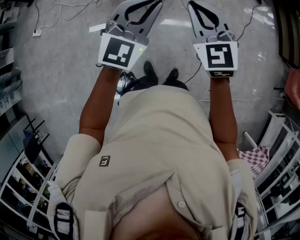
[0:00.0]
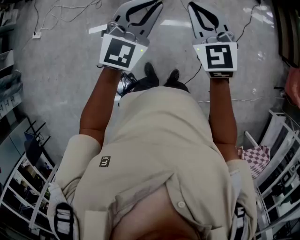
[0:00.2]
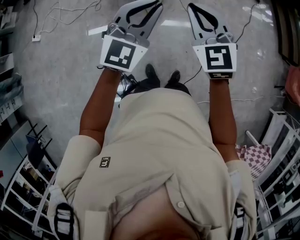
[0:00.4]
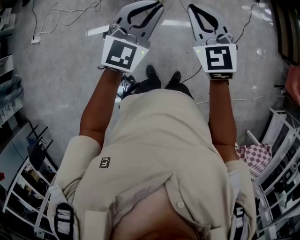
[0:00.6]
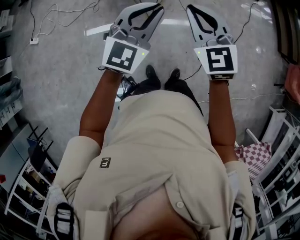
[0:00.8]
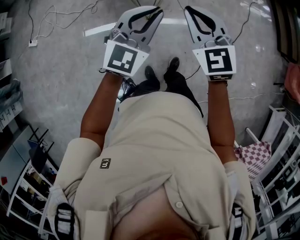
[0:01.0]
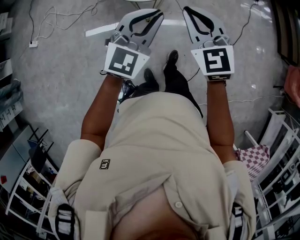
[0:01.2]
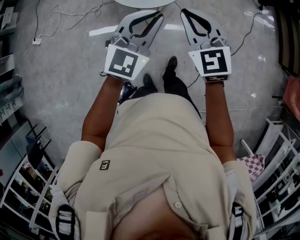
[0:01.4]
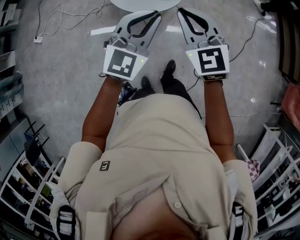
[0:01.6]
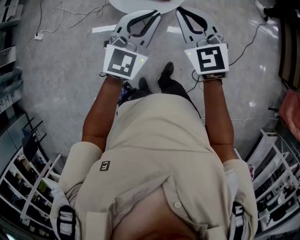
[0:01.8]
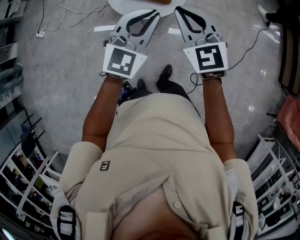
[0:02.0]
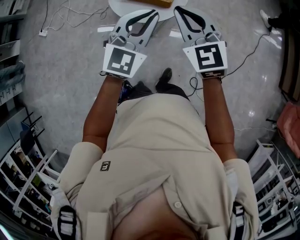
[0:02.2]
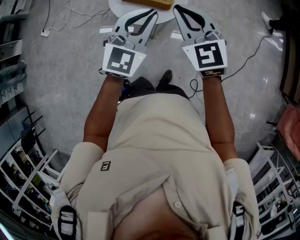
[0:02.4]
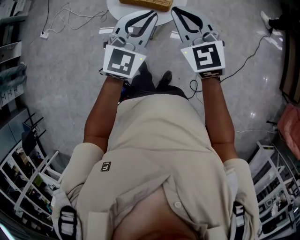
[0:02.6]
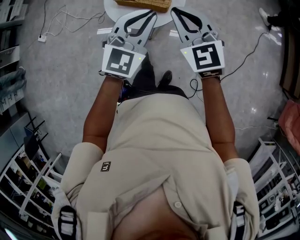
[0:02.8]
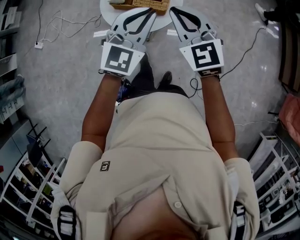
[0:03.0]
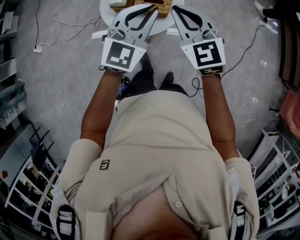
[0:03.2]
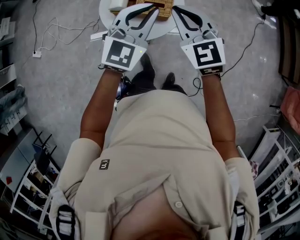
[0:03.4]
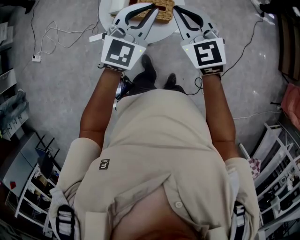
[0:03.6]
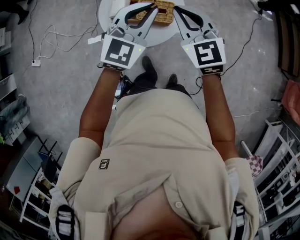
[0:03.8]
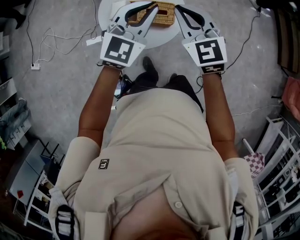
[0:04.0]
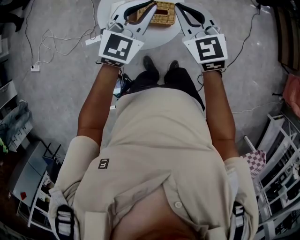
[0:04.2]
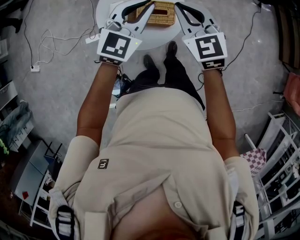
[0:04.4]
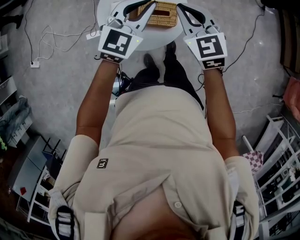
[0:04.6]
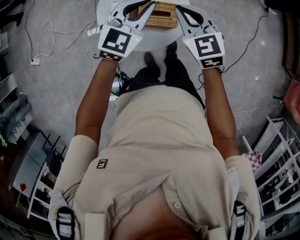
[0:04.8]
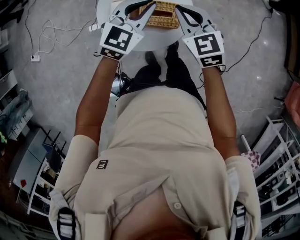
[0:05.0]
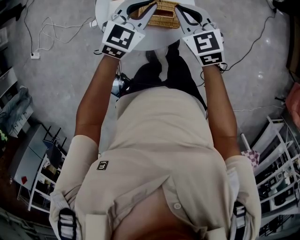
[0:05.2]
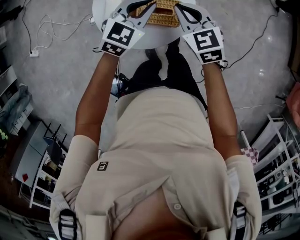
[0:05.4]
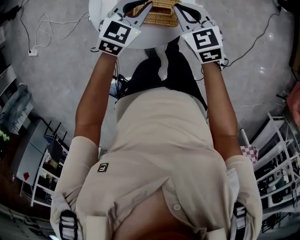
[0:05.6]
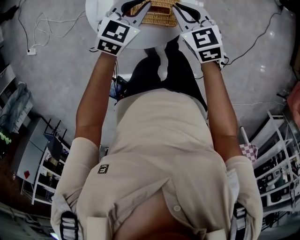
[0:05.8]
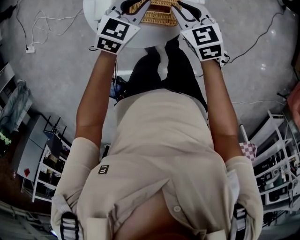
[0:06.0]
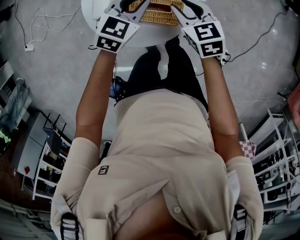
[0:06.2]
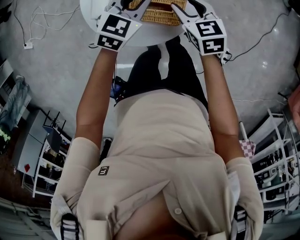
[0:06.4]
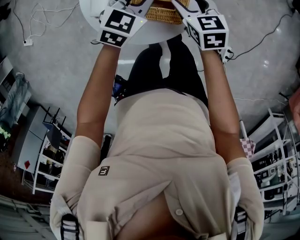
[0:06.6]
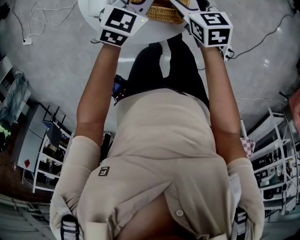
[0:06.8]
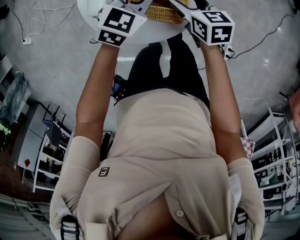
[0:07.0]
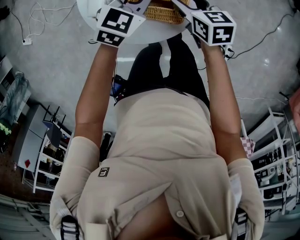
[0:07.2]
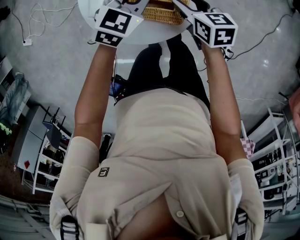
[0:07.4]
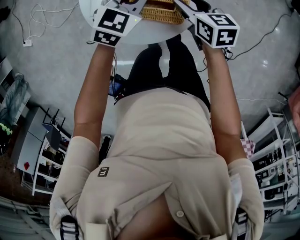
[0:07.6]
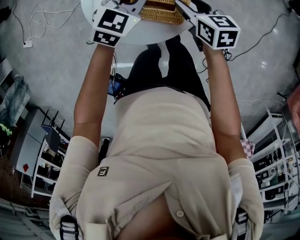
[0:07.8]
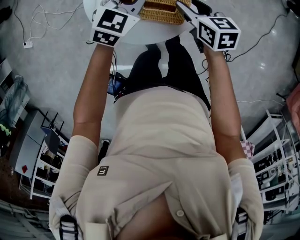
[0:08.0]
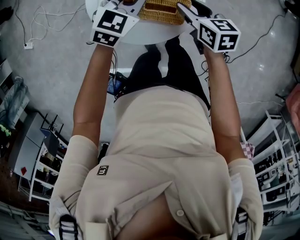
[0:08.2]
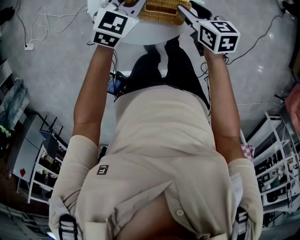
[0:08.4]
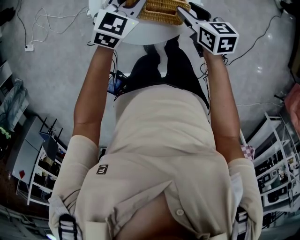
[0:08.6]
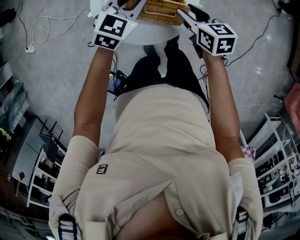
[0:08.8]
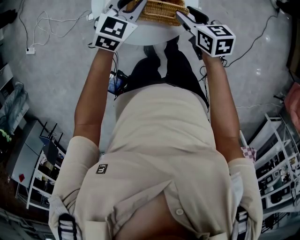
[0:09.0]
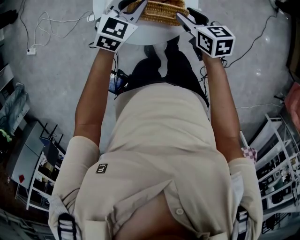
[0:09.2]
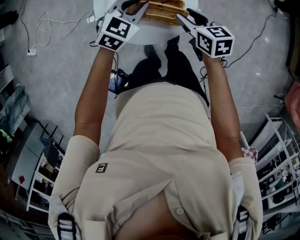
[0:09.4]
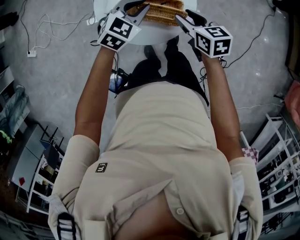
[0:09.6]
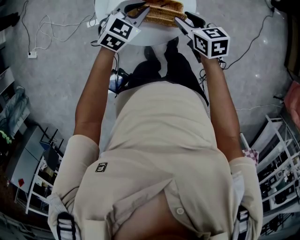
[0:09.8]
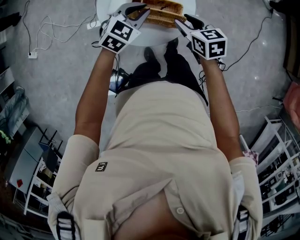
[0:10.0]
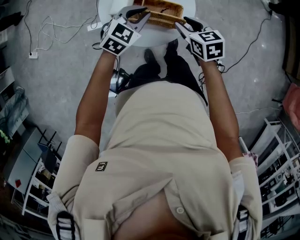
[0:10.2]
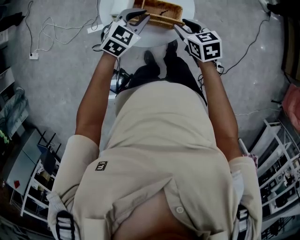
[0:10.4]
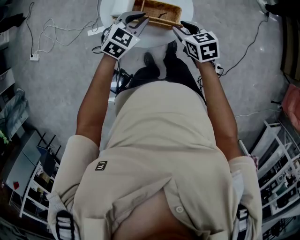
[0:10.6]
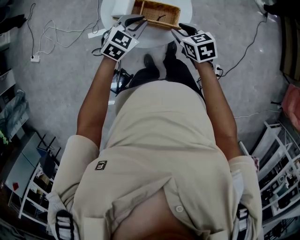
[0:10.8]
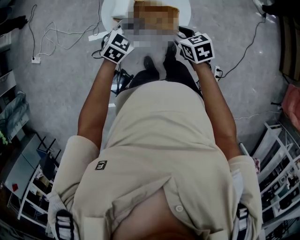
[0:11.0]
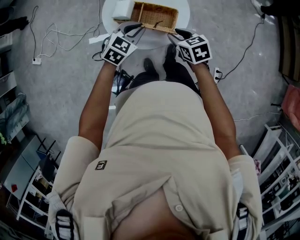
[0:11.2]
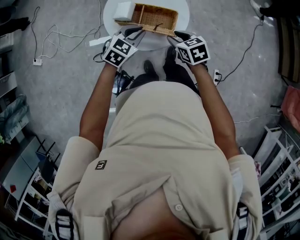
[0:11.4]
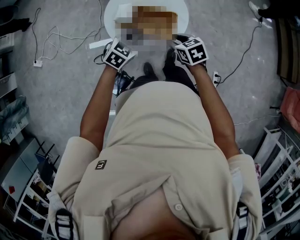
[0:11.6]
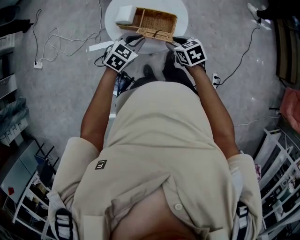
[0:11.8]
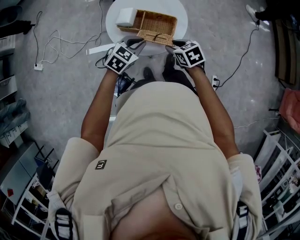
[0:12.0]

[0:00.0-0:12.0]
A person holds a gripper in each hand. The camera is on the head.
0:00.0 to 0:01.6: Both grippers travel together forward, some 15 cm.
0:01.6 to 0:03.0: The grippers both shift forward by approximately 15 cm.
0:03.0 to 0:04.4: Both grippers travel together forward, some 15 cm.
0:04.4 to 0:06.0: The grippers both shift downward by about 20 cm. The left gripper swivels some 30 degrees, while the right gripper turns by roughly 20 degrees.
0:06.0 to 0:07.6: The right gripper goes about 5 cm downward, swivels about 20 degrees, and opens its fingers.
0:07.6 to 0:09.0: The left gripper heads upward, covering approximately 5 cm, while the right gripper moves upward and backward, roughly 10 cm.
0:09.0 to 0:10.4: Both grippers move backward, about 5 cm.
0:10.4 to 0:12.0: The grippers both shift backward by roughly 10 cm.

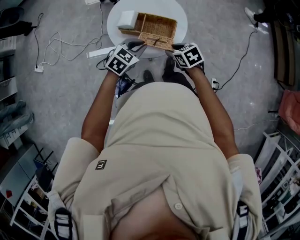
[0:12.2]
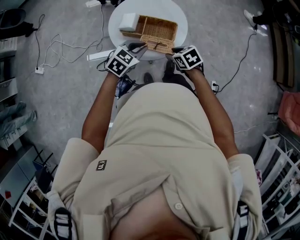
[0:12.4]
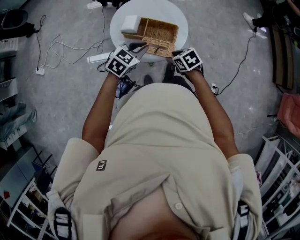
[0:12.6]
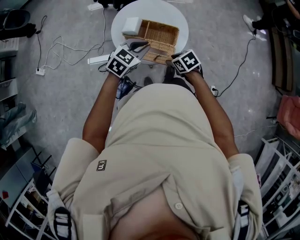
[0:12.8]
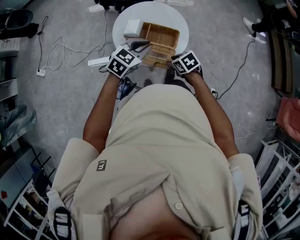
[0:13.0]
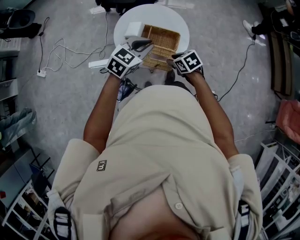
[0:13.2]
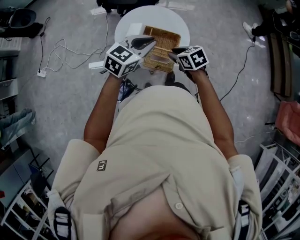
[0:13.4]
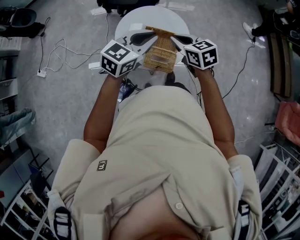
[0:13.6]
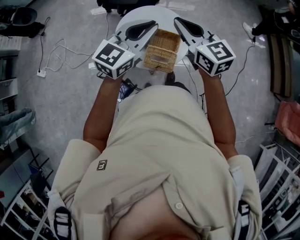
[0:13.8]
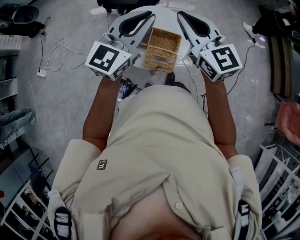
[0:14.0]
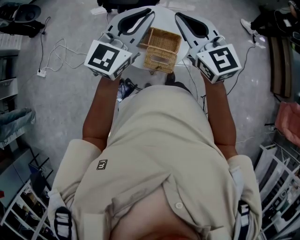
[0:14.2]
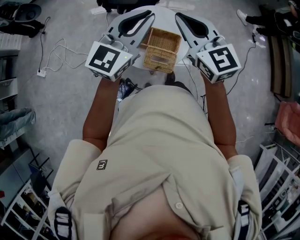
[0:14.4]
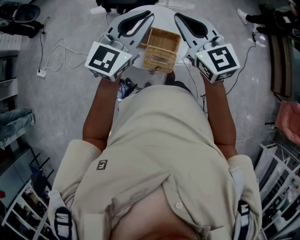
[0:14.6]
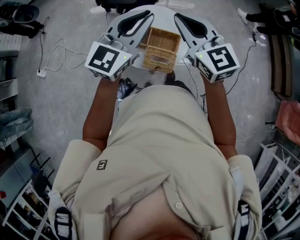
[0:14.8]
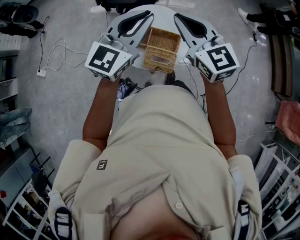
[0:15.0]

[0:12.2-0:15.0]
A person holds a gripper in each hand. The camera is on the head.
0:12.2 to 0:13.6: The right gripper shifts some 20 cm upward and forward, rotates roughly 20 degrees, and closes up, while the left gripper travels upward by about 20 cm, and changes its angle by approximately 30 degrees.
0:13.6 to 0:15.0: The grippers both shift upward by some 15 cm. The right gripper changes its angle by about 30 degrees. Meanwhile the left gripper swivels roughly 20 degrees.

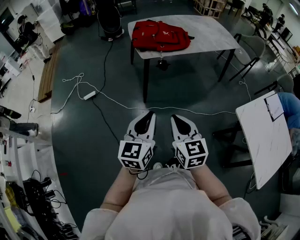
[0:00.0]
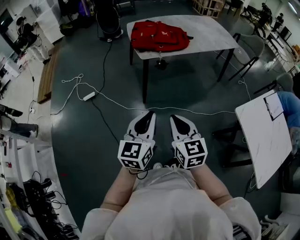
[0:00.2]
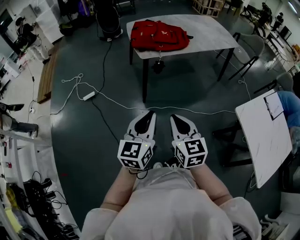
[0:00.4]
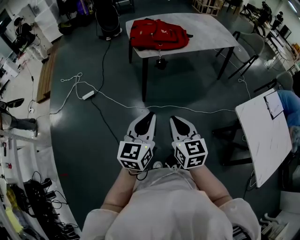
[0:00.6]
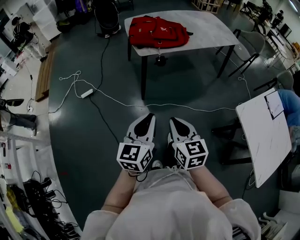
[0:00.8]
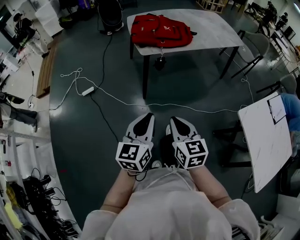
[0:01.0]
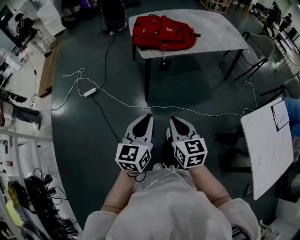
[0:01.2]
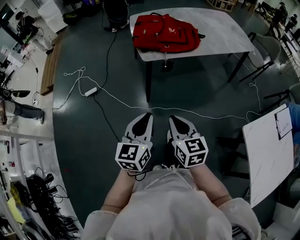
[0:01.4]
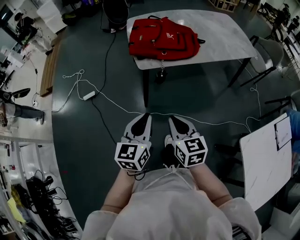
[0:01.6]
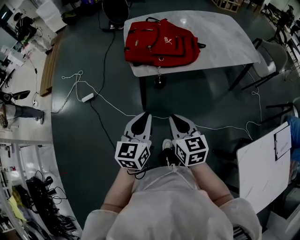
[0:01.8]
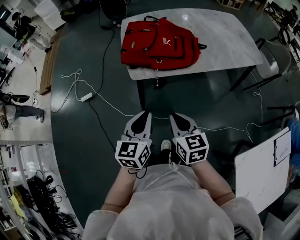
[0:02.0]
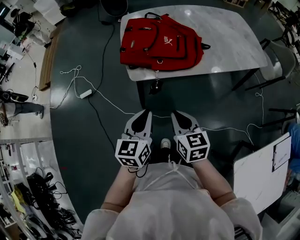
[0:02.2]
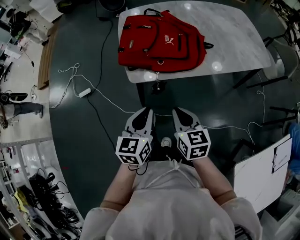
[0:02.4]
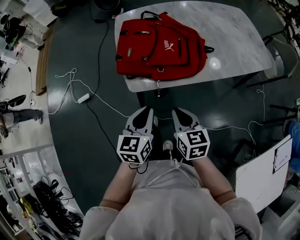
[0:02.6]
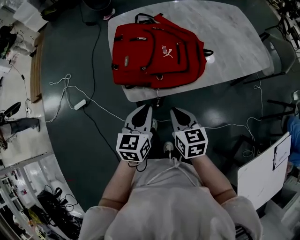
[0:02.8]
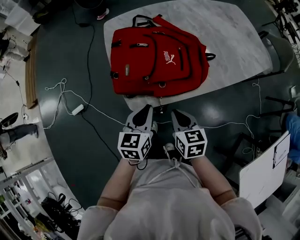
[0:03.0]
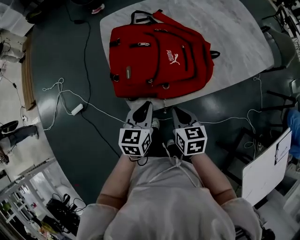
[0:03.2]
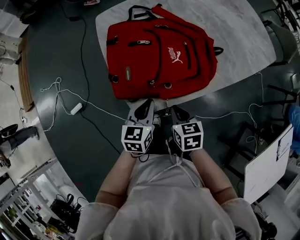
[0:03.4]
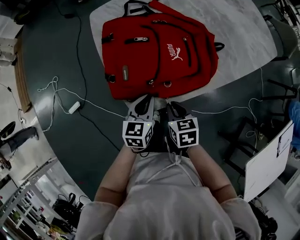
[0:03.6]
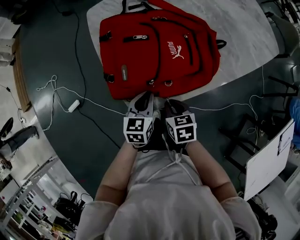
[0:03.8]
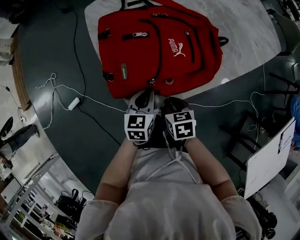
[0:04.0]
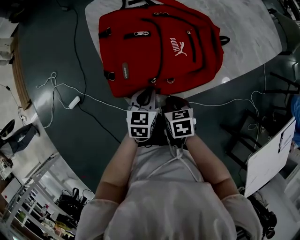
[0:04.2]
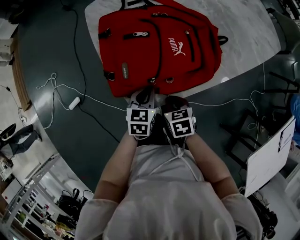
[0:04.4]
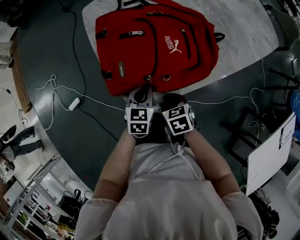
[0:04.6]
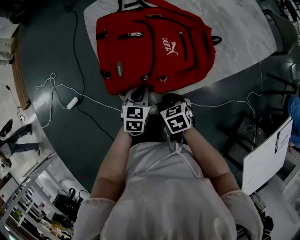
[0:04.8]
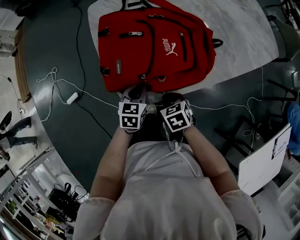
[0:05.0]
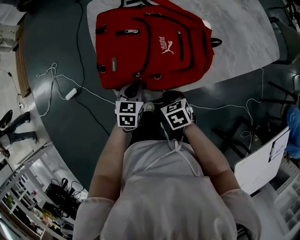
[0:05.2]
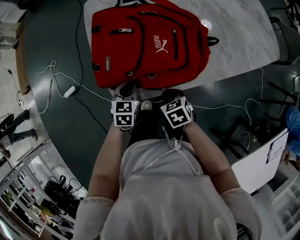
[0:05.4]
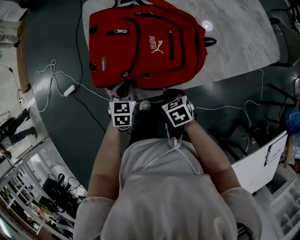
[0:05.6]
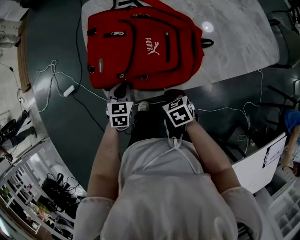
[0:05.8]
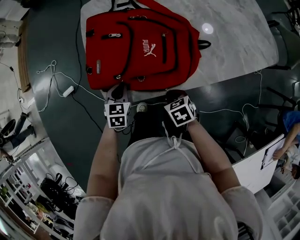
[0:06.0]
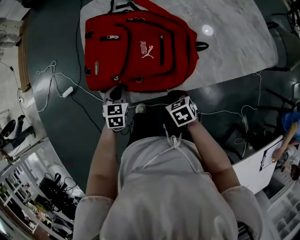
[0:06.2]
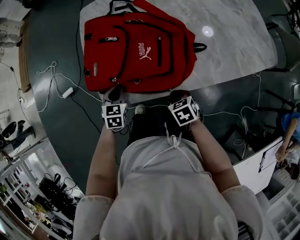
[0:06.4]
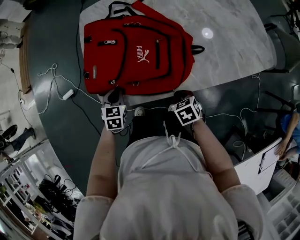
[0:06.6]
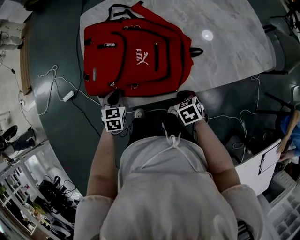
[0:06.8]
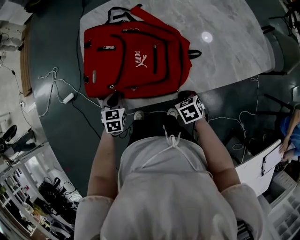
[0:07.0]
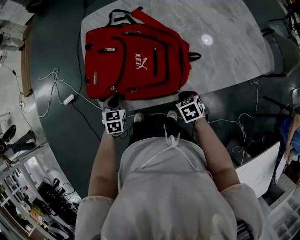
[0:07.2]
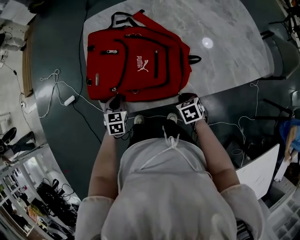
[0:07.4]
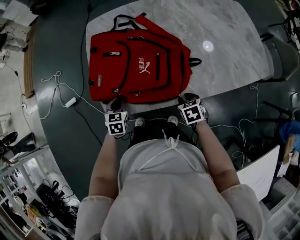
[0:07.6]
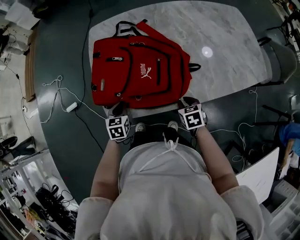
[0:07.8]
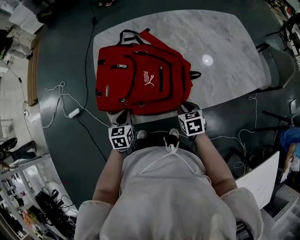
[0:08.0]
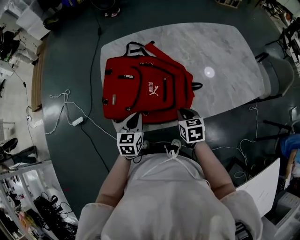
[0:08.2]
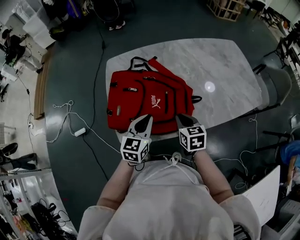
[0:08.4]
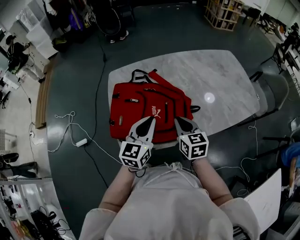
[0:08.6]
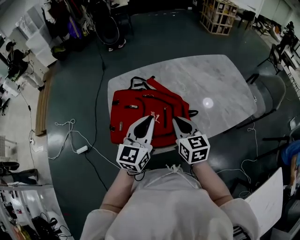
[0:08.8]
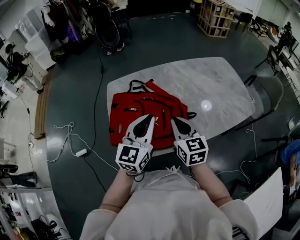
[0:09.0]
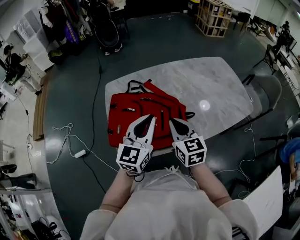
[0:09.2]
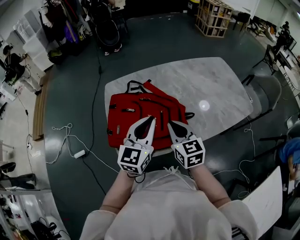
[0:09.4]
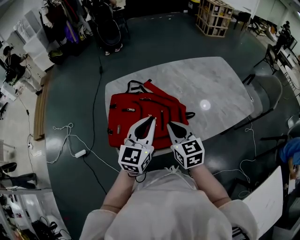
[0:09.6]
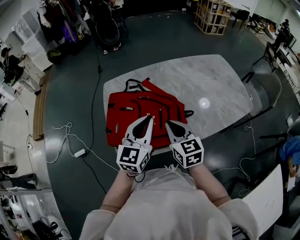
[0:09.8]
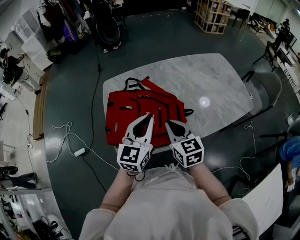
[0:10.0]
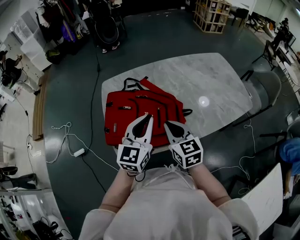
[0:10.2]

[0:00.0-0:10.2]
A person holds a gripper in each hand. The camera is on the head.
0:00.0 to 0:01.4: Both grippers move forward, roughly 15 cm.
0:01.4 to 0:03.0: Both grippers are carried forward, about 40 cm.
0:03.0 to 0:04.4: The right gripper travels downward by about 15 cm, and turns by about 20 degrees, while the left gripper goes approximately 15 cm downward and forward.
0:04.4 to 0:05.8: The right gripper shifts roughly 10 cm to the right, and swivels approximately 20 degrees.
0:05.8 to 0:07.2: The right gripper moves to the right, some 15 cm.
0:07.2 to 0:08.8: Both grippers travel together upward, approximately 30 cm. The right gripper tilts its fingers some 50 degrees upward; the left gripper points its fingers some 40 degrees further upward.
0:08.8 to 0:10.2: The grippers stay close to where they were, moving slightly.
